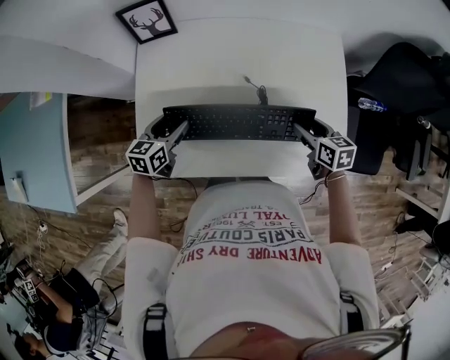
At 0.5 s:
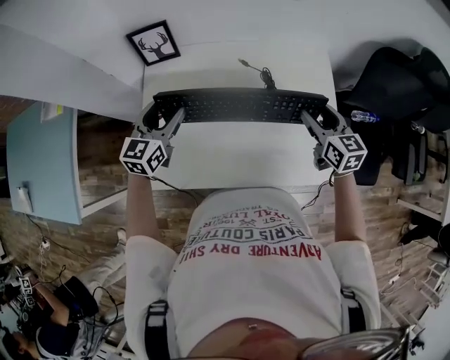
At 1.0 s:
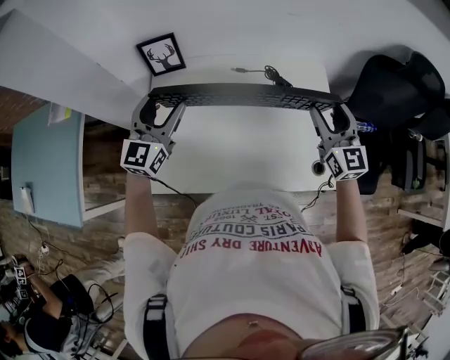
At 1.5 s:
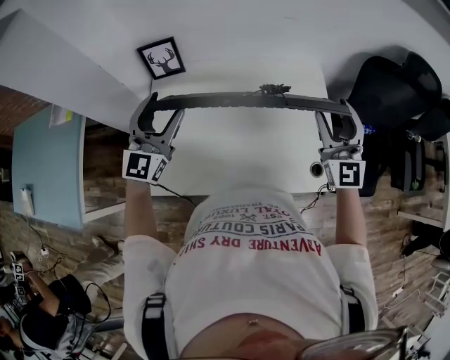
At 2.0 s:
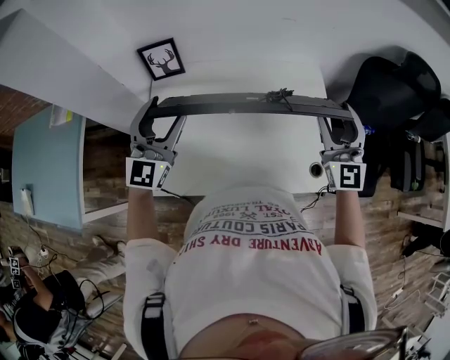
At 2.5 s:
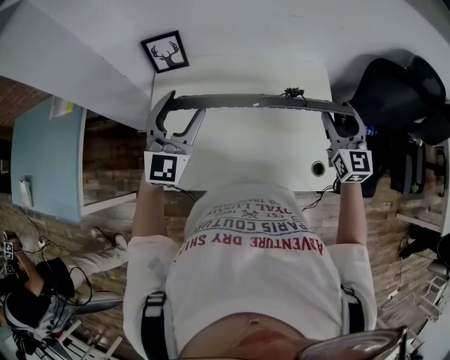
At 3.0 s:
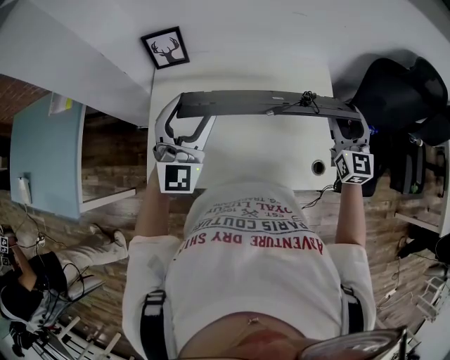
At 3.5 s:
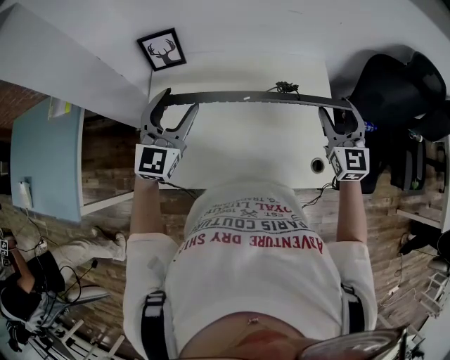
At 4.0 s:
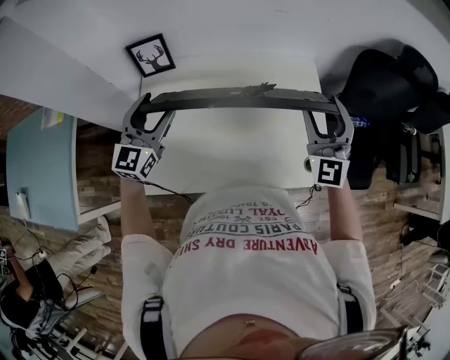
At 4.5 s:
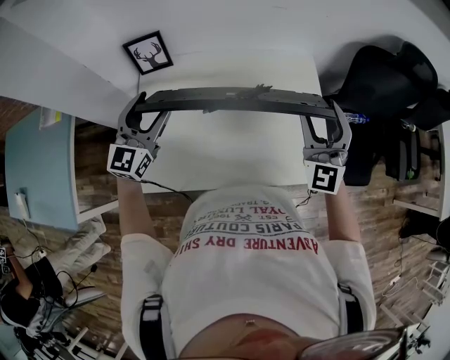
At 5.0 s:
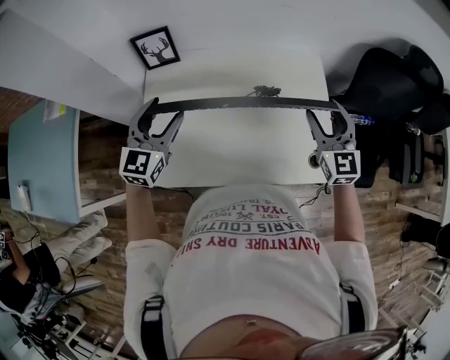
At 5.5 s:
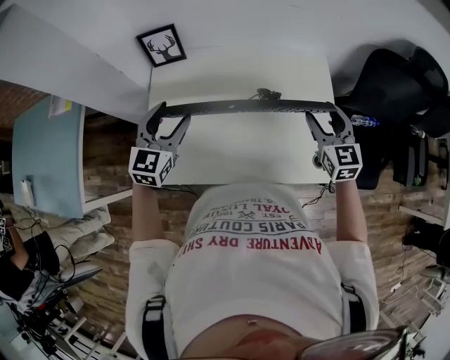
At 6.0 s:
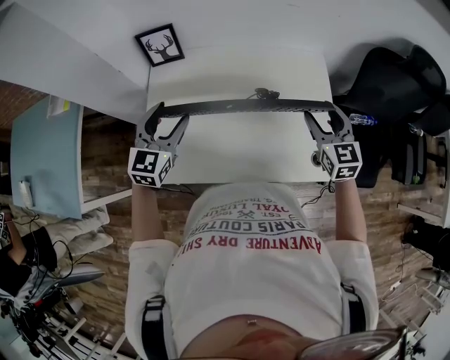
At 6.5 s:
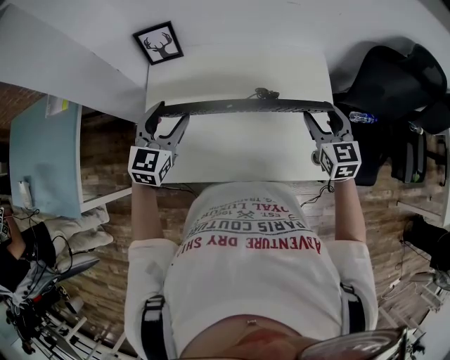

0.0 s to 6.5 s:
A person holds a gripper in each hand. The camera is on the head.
0.0 to 2.0 s: Both grippers travel together upward, roughly 30 cm. The right gripper points its fingers some 50 degrees further upward. Meanwhile the left gripper tips its fingers upward by approximately 40 degrees.
2.0 to 4.5 s: The left gripper moves about 5 cm. The right gripper goes downward and returns, approximately 5 cm each way.
4.5 to 6.5 s: The left gripper travels downward by approximately 5 cm. The right gripper shifts about 10 cm downward, and tips its fingers downward by some 30 degrees.

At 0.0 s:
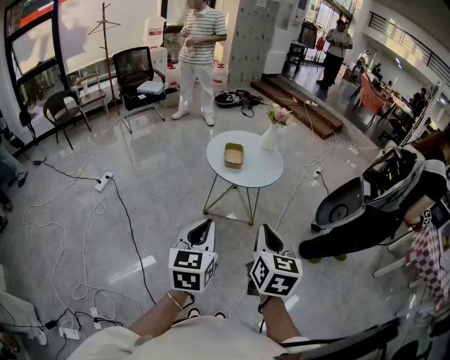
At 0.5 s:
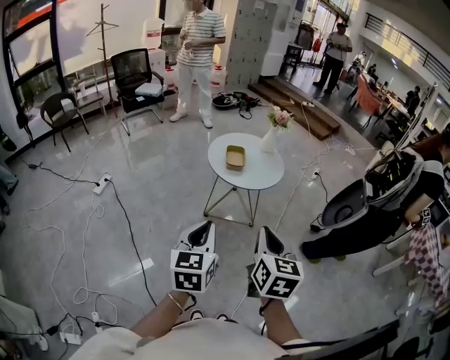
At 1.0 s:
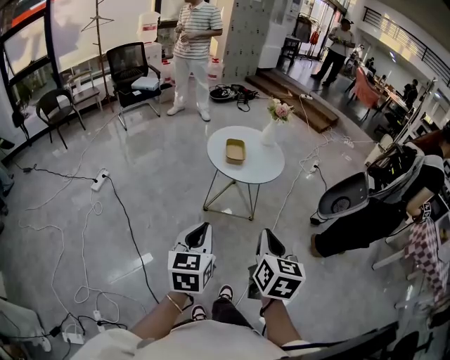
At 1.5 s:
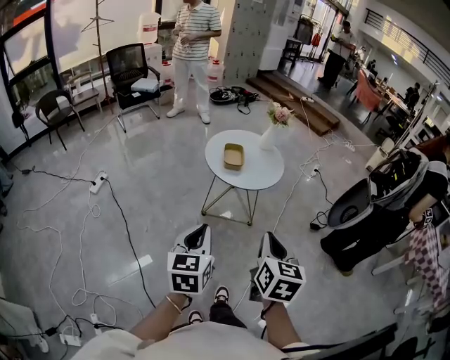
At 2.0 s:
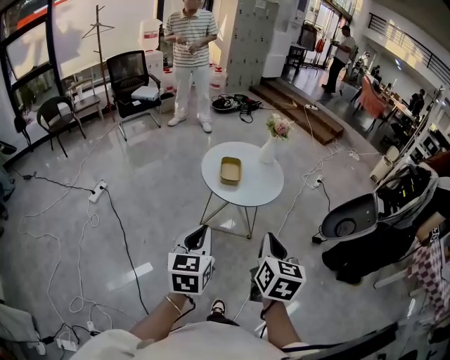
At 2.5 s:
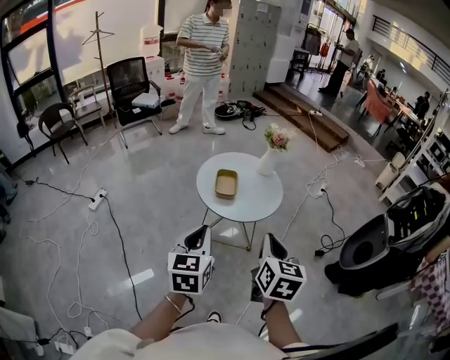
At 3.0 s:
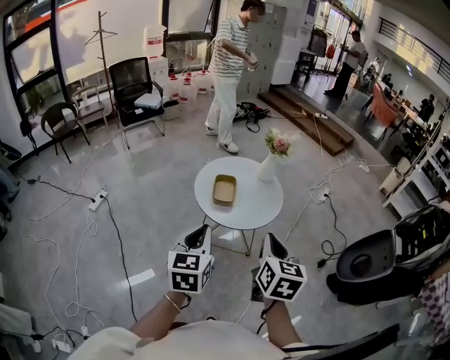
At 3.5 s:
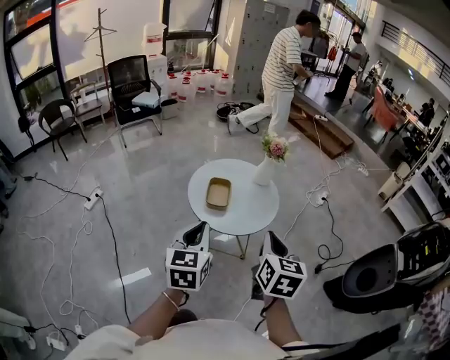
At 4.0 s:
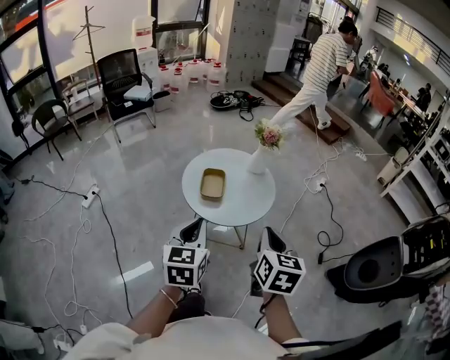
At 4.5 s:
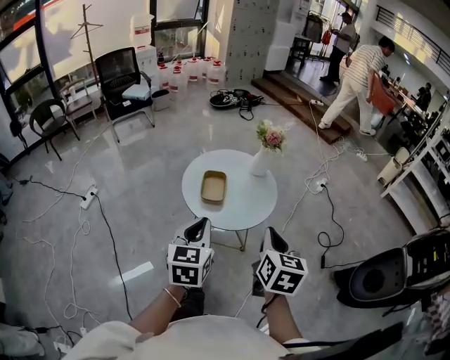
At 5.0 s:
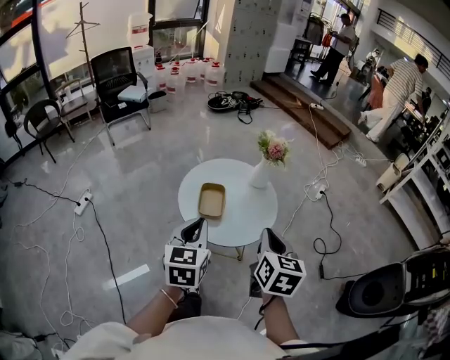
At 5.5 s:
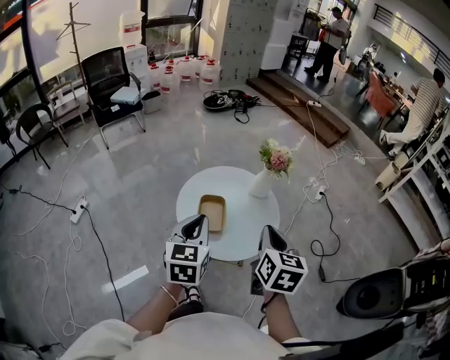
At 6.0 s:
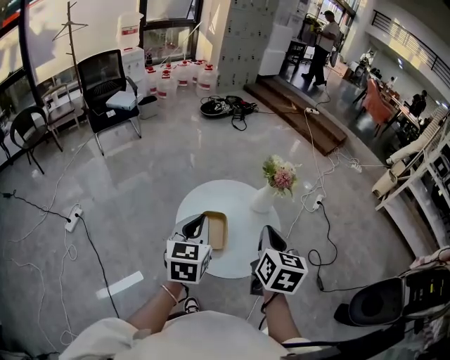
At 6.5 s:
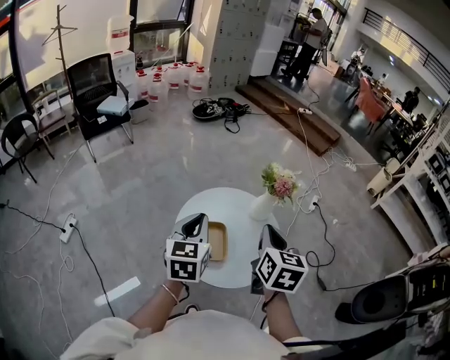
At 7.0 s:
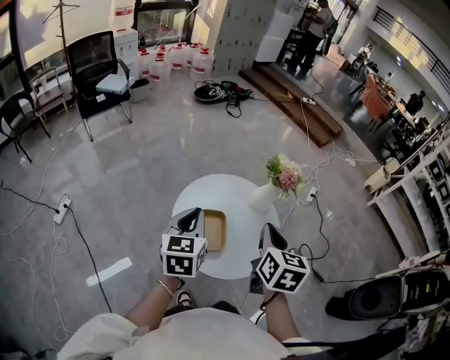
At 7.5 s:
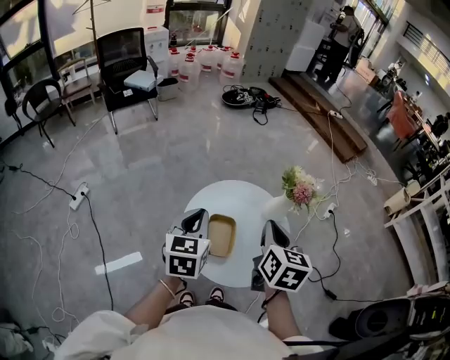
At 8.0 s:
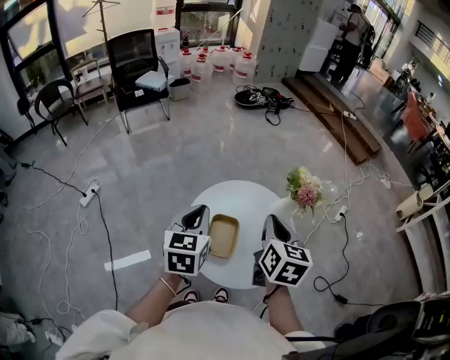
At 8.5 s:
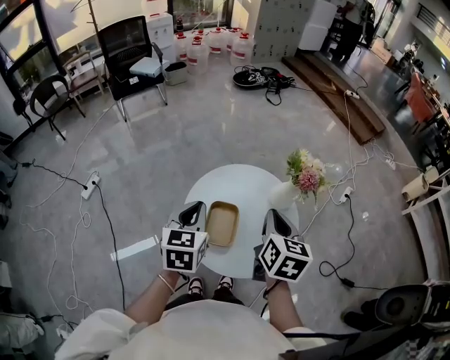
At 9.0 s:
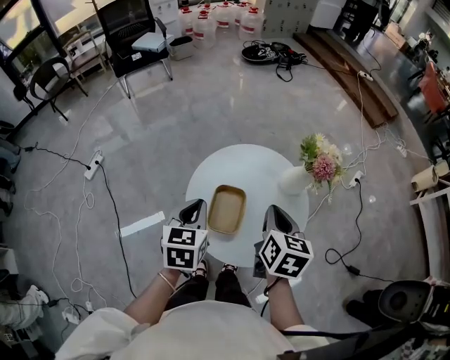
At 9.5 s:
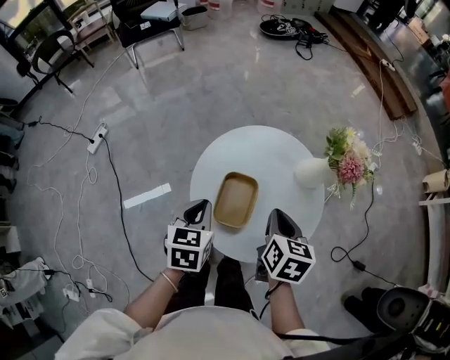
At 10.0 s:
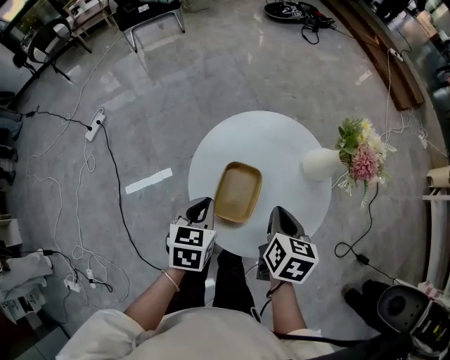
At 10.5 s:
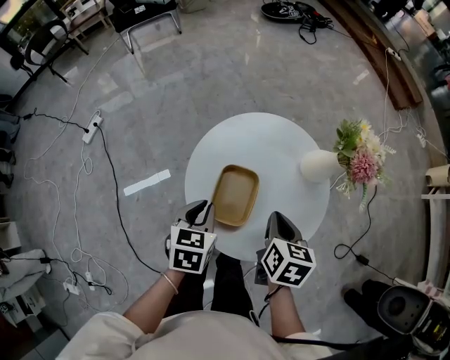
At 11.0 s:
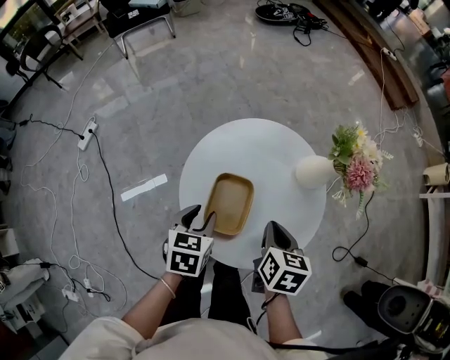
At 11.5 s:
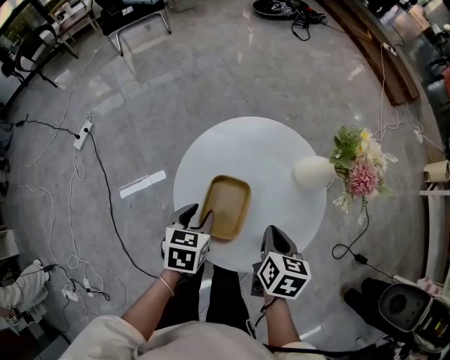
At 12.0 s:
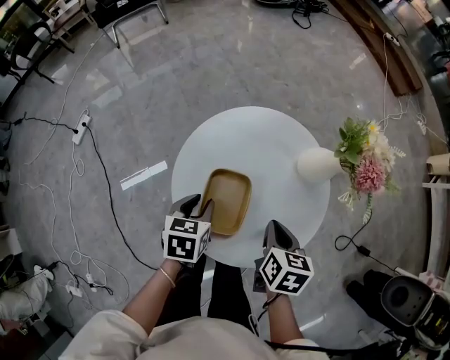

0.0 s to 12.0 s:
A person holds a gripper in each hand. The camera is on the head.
0.0 to 2.0 s: Both grippers move forward, approximately 10 cm.
2.0 to 4.0 s: The two grippers go roughly 15 cm forward and to the right.
4.0 to 6.0 s: Both grippers travel together forward, roughly 20 cm.
6.0 to 8.0 s: The left gripper heads forward, covering some 5 cm; the right gripper heads forward, covering approximately 10 cm.
8.0 to 10.0 s: The grippers both shift downward by some 20 cm. The left gripper changes its angle by roughly 20 degrees; the right gripper turns by roughly 20 degrees.
10.0 to 12.0 s: The left gripper shifts about 5 cm downward, and opens its fingers. The right gripper changes place by some 5 cm.

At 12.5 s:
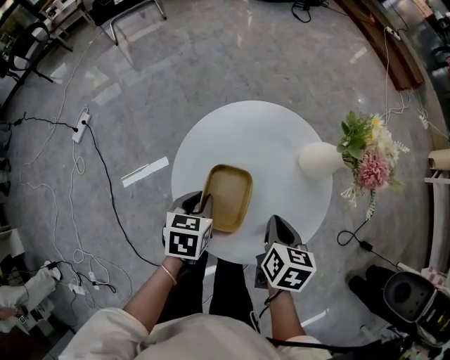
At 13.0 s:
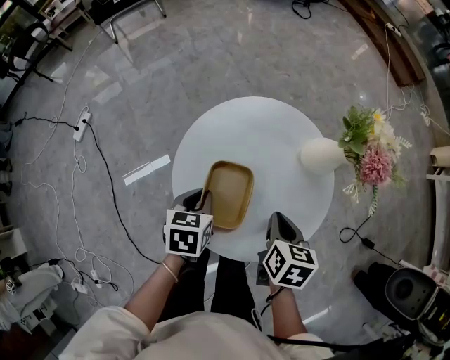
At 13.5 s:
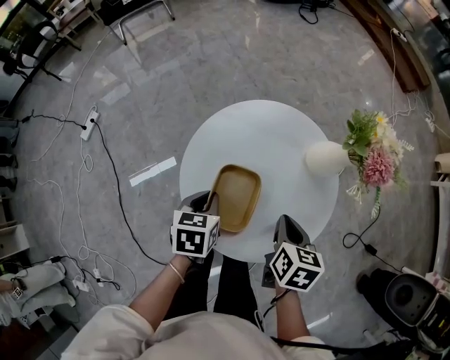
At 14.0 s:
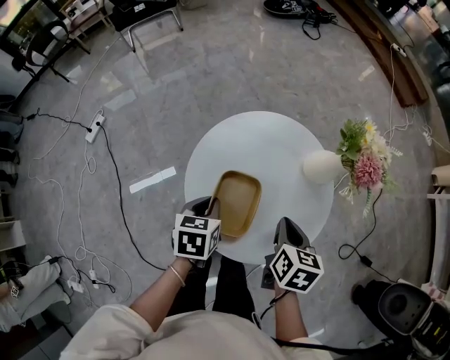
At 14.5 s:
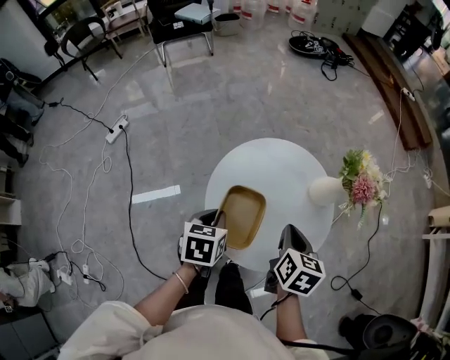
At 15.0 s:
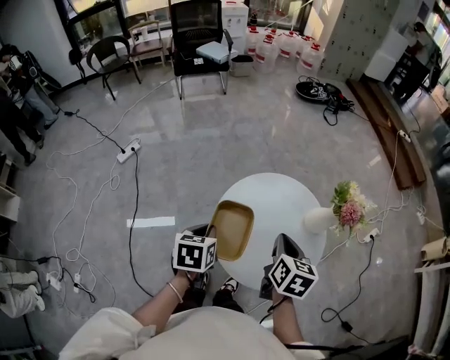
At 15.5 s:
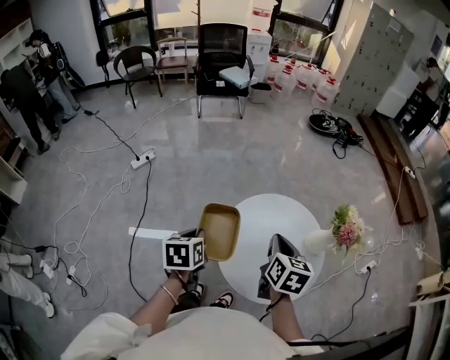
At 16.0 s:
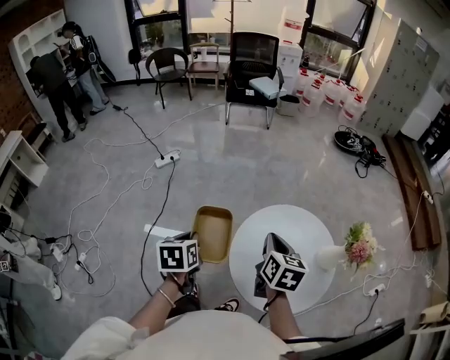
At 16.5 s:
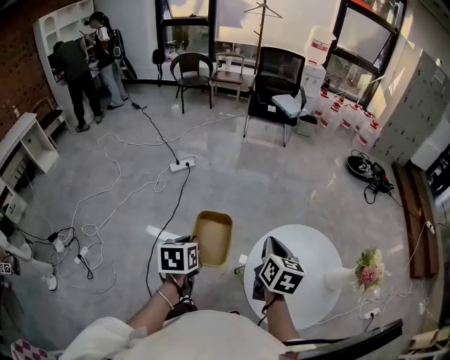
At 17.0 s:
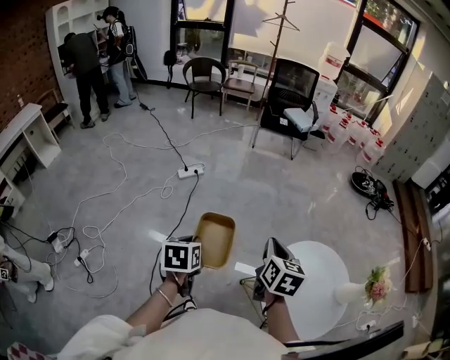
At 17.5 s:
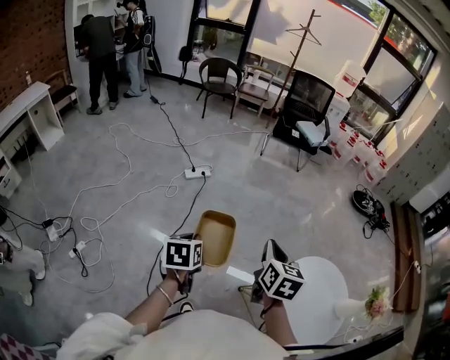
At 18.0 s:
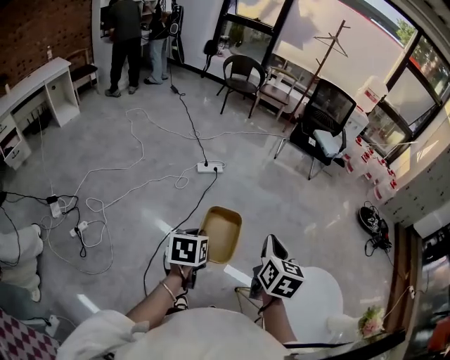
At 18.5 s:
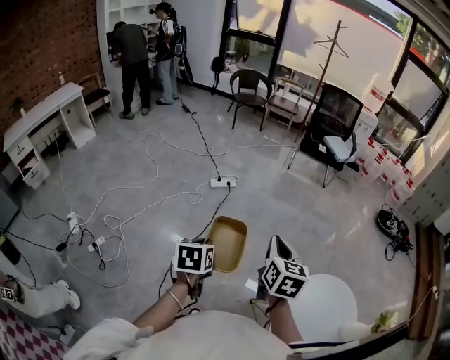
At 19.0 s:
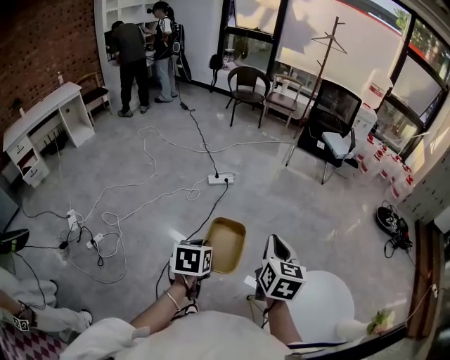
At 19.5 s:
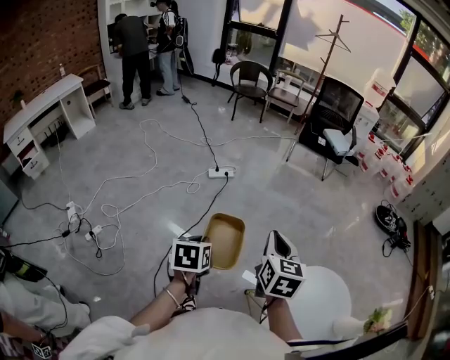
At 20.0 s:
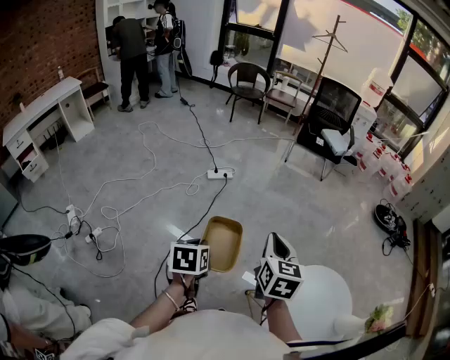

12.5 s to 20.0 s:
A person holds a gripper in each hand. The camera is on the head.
12.5 to 14.5 s: Both grippers move upward, approximately 10 cm.
14.5 to 16.5 s: The left gripper moves approximately 25 cm, and rotates about 40 degrees. The right gripper moves about 25 cm, and swivels some 40 degrees.
16.5 to 18.0 s: The two grippers go approximately 20 cm to the left.
18.0 to 20.0 s: The left gripper changes place by roughly 5 cm.

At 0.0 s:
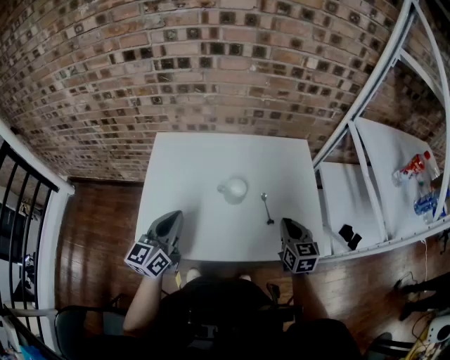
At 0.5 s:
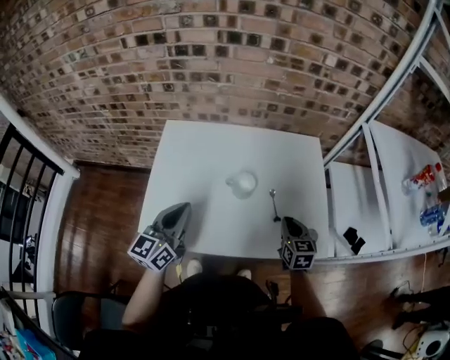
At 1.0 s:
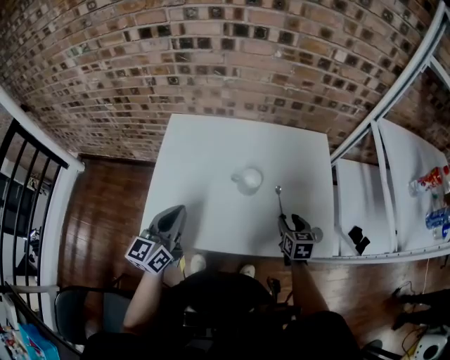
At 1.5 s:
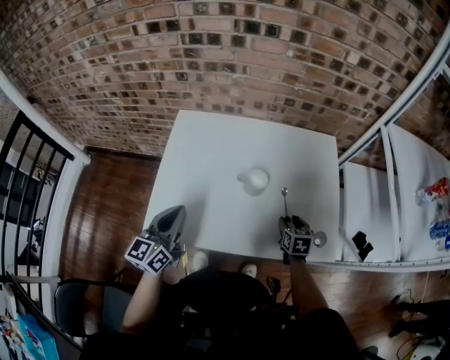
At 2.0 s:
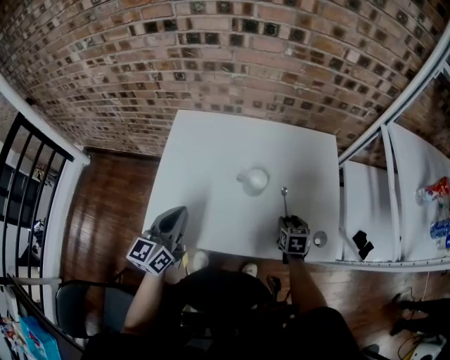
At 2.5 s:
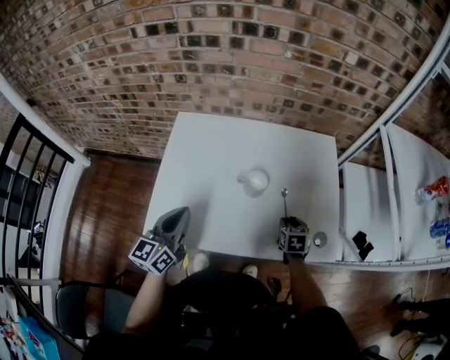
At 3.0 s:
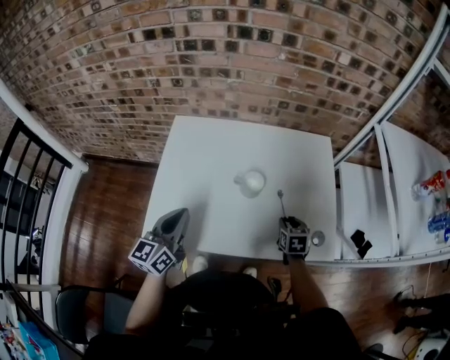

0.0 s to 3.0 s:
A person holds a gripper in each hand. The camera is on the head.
0.0 to 1.5 s: The right gripper goes some 15 cm downward, changes its angle by some 20 degrees, and opens its fingers.
1.5 to 3.0 s: The grippers make only small movements.
